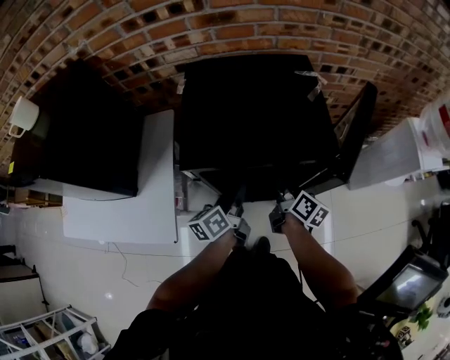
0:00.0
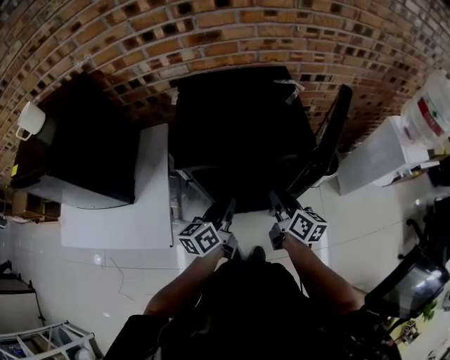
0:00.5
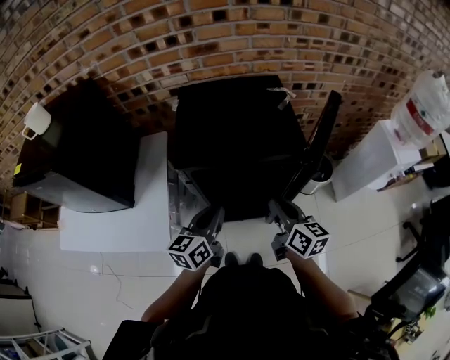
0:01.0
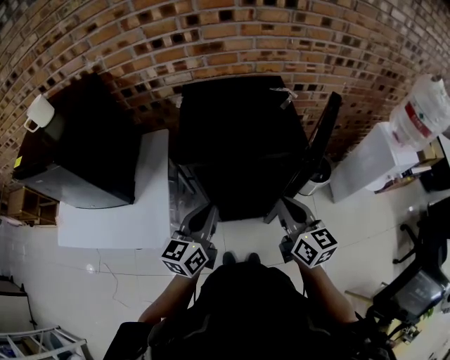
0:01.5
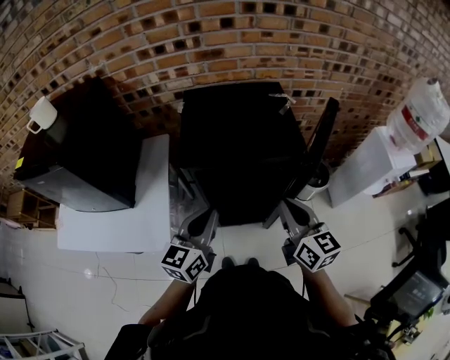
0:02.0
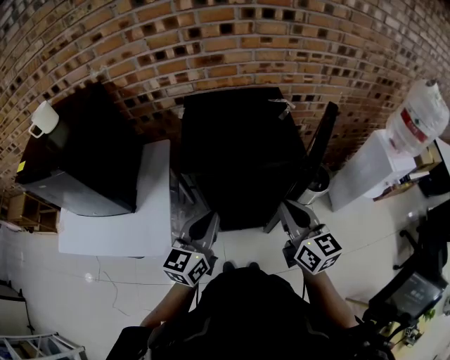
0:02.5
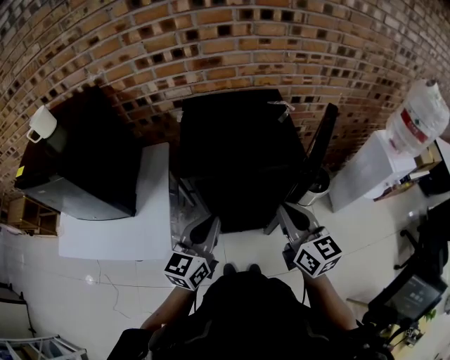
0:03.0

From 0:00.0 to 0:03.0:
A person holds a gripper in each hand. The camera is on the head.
From 0:00.0 to 0:01.5: Both grippers move upward and backward, about 20 cm. The right gripper rotates roughly 40 degrees, and closes; the left gripper rotates some 40 degrees.
From 0:01.5 to 0:03.0: There are only small adjustments of the grippers.

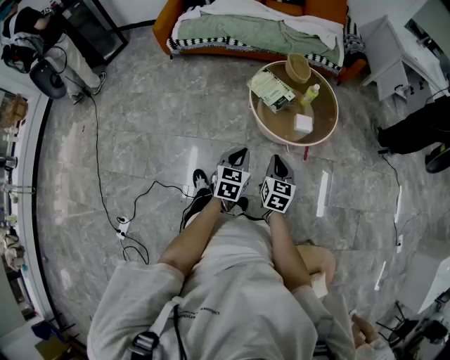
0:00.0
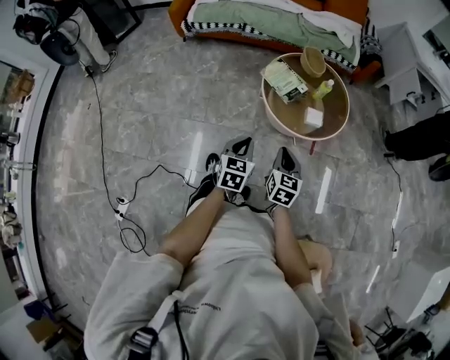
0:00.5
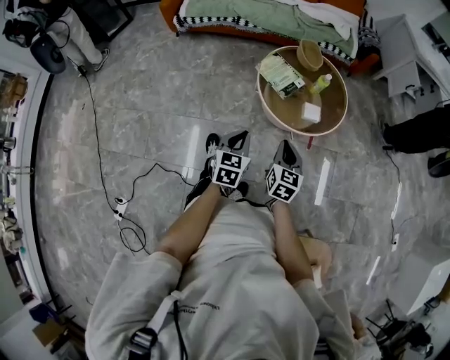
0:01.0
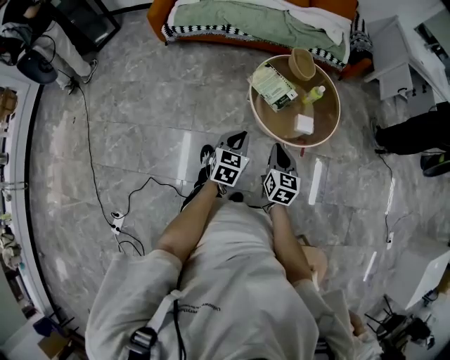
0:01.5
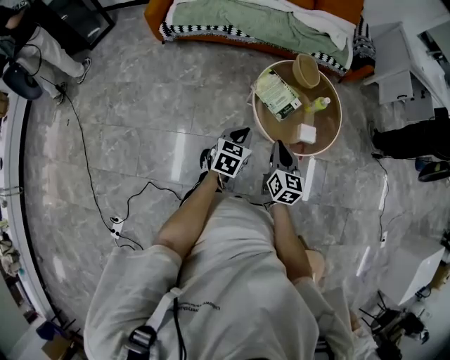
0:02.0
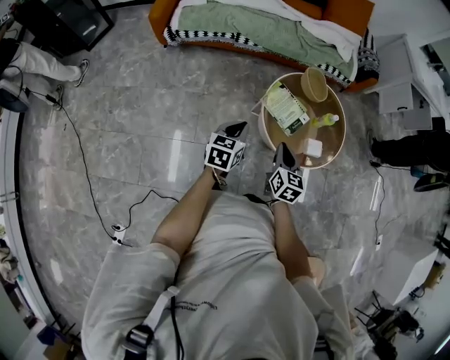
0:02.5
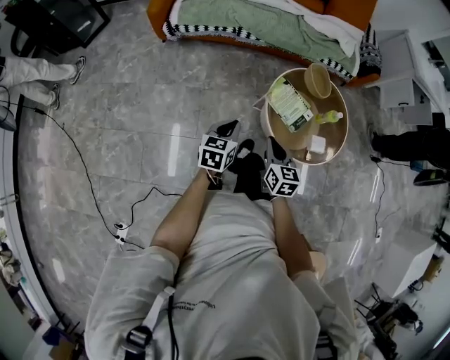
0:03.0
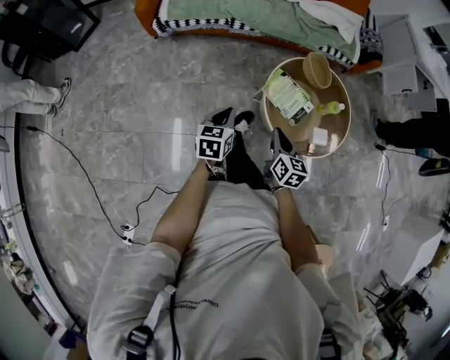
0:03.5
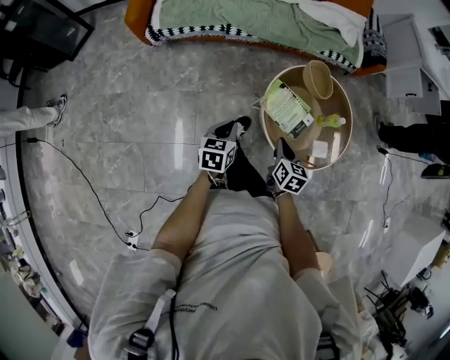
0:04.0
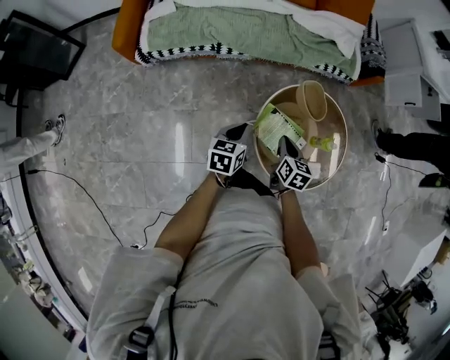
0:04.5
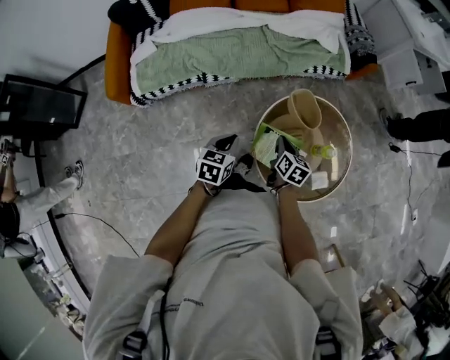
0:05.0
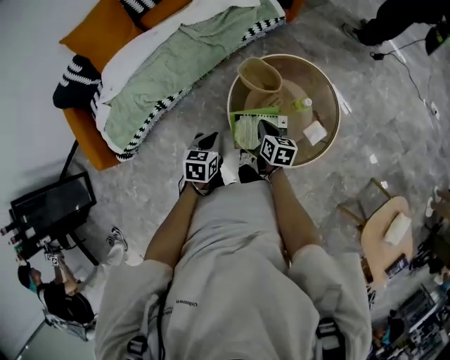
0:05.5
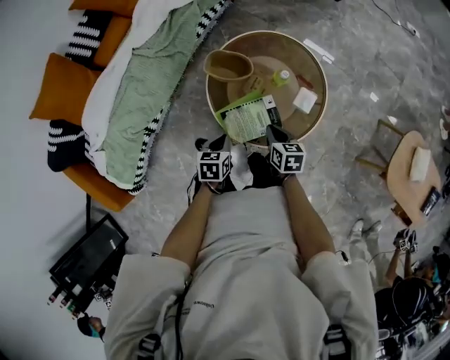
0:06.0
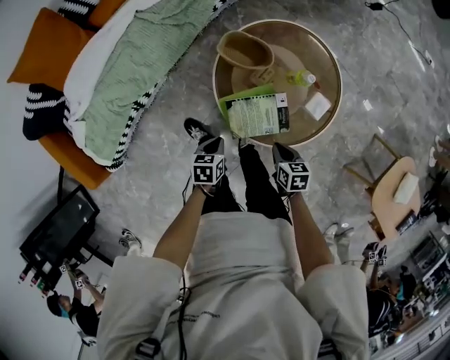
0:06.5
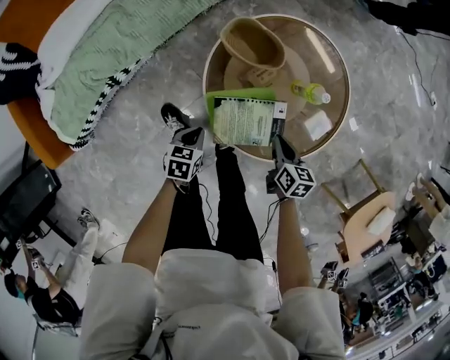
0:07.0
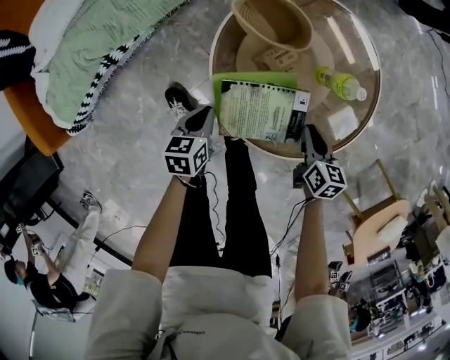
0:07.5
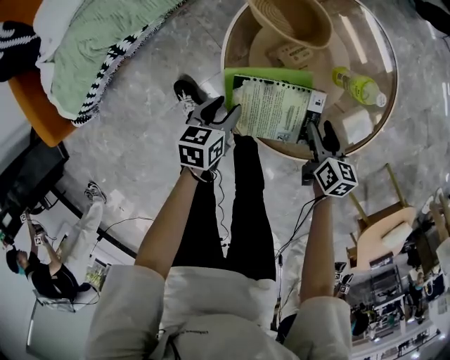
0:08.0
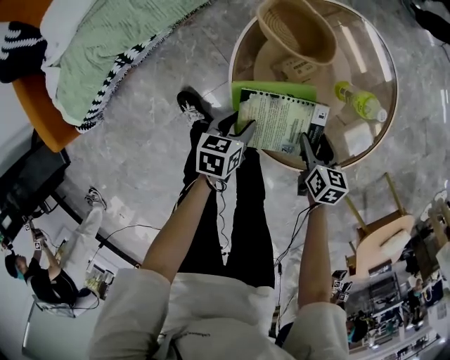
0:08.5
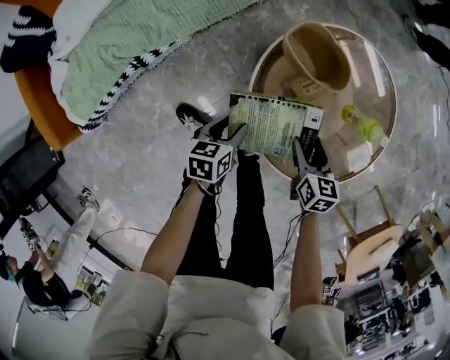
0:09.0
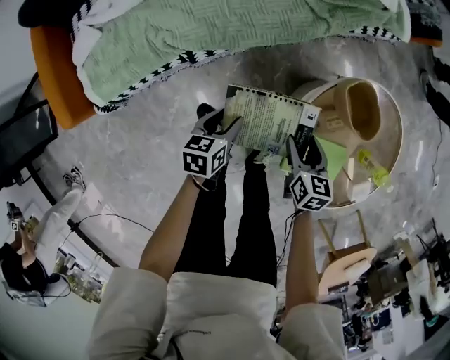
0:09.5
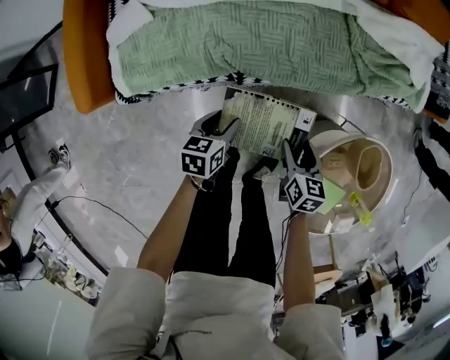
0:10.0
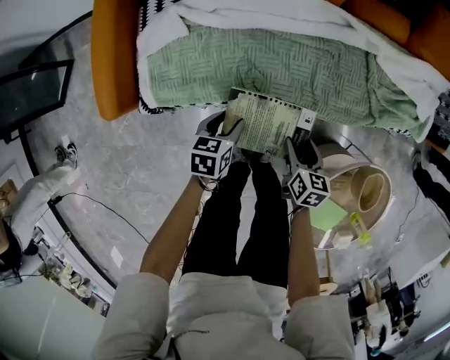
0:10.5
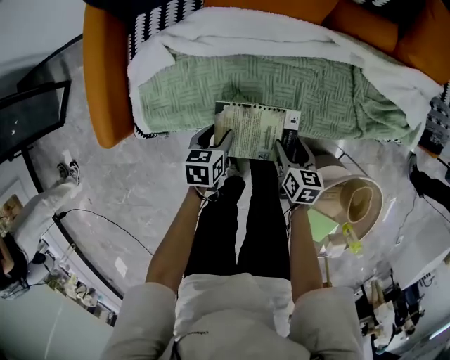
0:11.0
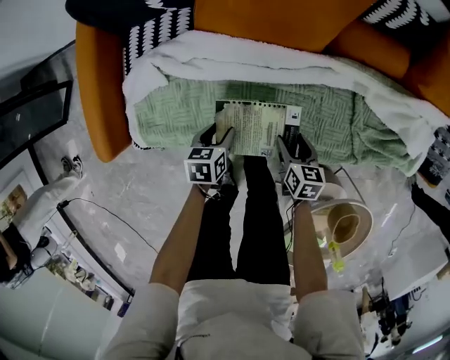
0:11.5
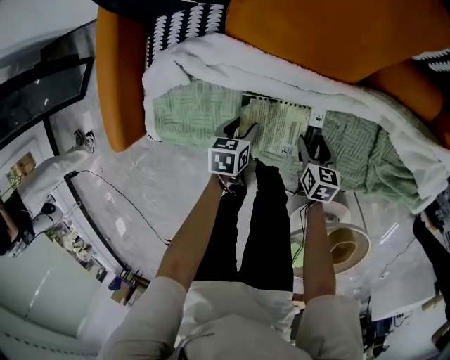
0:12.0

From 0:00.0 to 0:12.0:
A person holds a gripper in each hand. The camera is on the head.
From 0:00.0 to 0:02.0: The two grippers go roughly 20 cm forward and to the left.
From 0:02.0 to 0:04.0: The left gripper goes about 20 cm forward and to the left. The right gripper heads forward, downward and to the left, covering some 20 cm.
From 0:04.0 to 0:06.0: The left gripper ends up some 30 cm from where it was, and turns by approximately 60 degrees, while the right gripper moves some 20 cm, and changes its angle by roughly 50 degrees.
From 0:06.0 to 0:08.0: The grippers both shift downward by roughly 20 cm. The left gripper turns by approximately 20 degrees, and opens; the right gripper opens up.
From 0:08.0 to 0:10.0: The two grippers travel together, approximately 50 cm. The left gripper changes its angle by roughly 30 degrees. The right gripper swivels approximately 40 degrees.
From 0:10.0 to 0:12.0: The two grippers go some 30 cm forward. The left gripper swivels some 20 degrees.

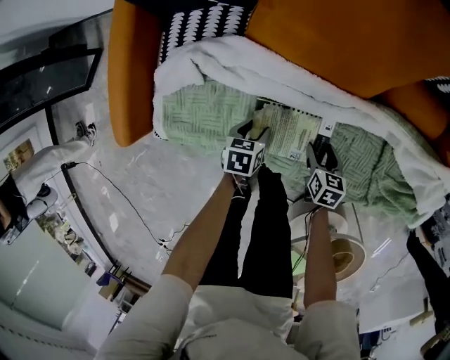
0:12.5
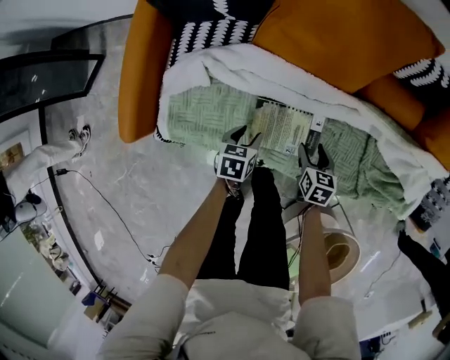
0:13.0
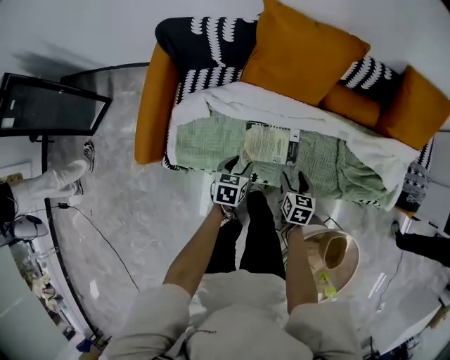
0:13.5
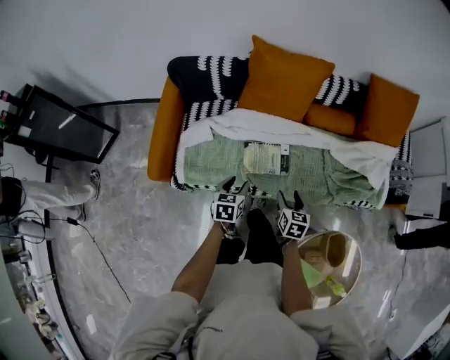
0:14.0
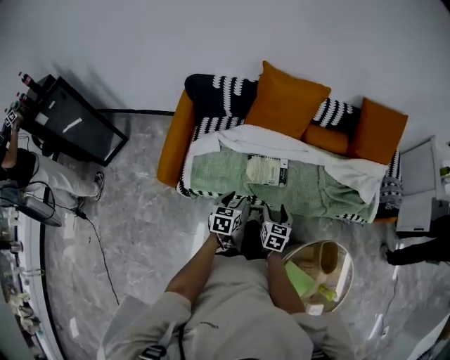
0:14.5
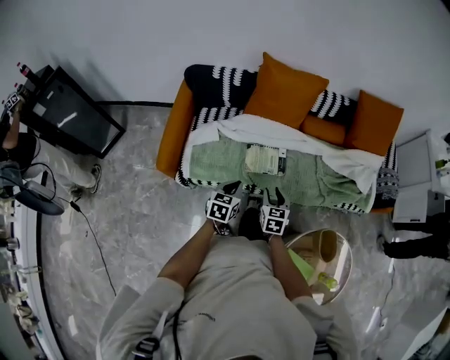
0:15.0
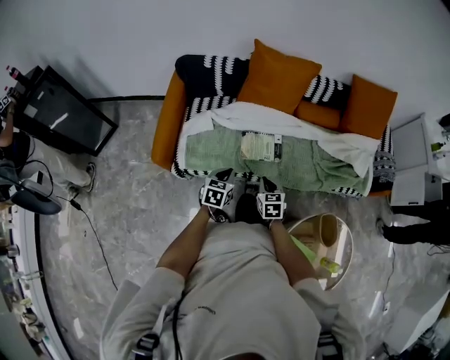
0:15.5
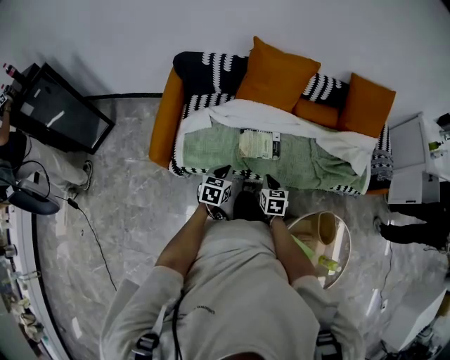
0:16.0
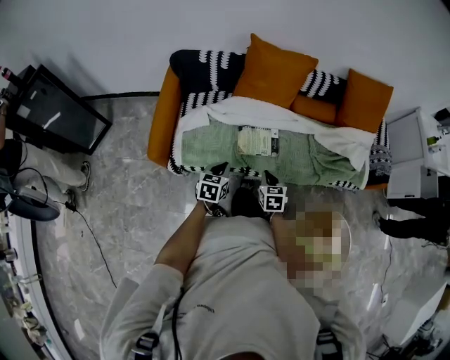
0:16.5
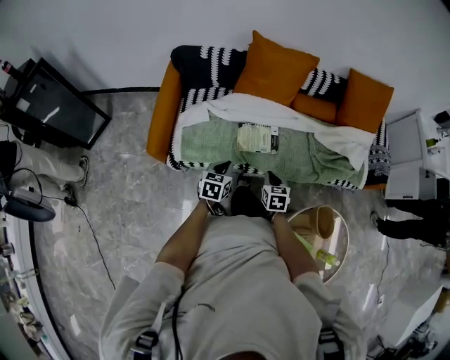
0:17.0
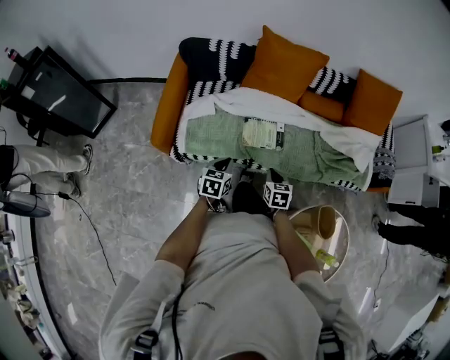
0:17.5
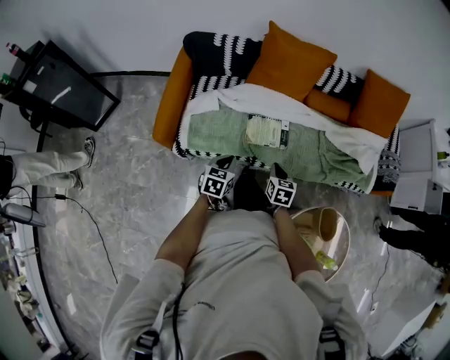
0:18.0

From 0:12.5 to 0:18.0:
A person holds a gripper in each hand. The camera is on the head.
From 0:12.5 to 0:14.5: The grippers both shift upward and backward by some 40 cm. The left gripper changes its angle by approximately 30 degrees. The right gripper changes its angle by roughly 30 degrees.
From 0:14.5 to 0:16.0: The left gripper closes up. Meanwhile the right gripper closes.
From 0:16.0 to 0:18.0: The grippers move only a little.

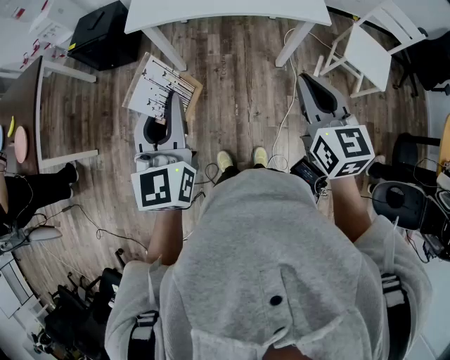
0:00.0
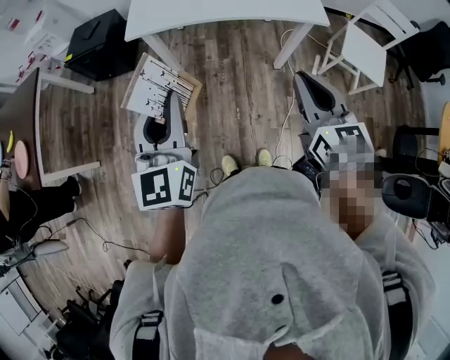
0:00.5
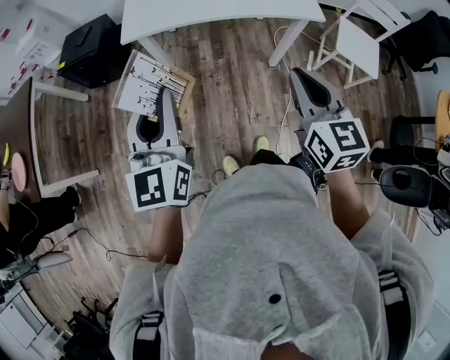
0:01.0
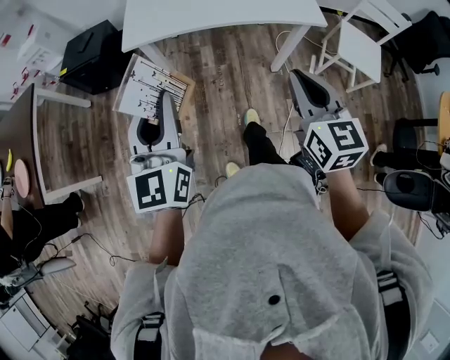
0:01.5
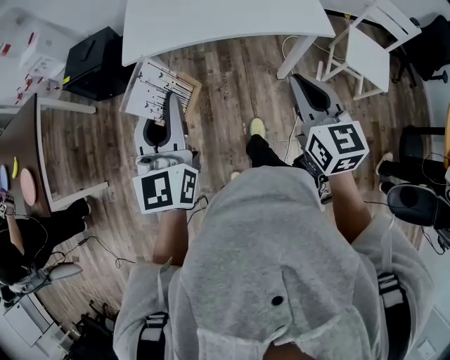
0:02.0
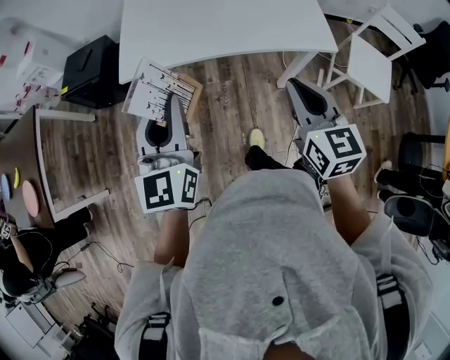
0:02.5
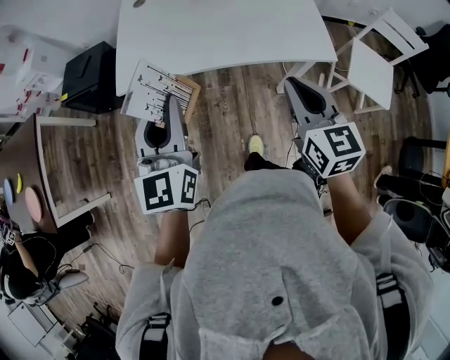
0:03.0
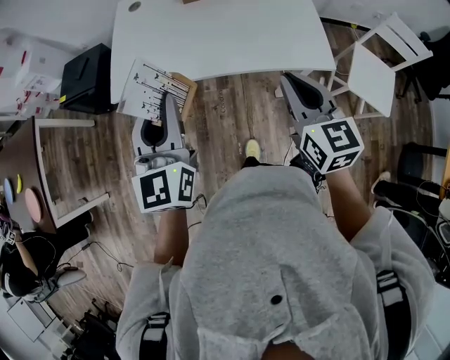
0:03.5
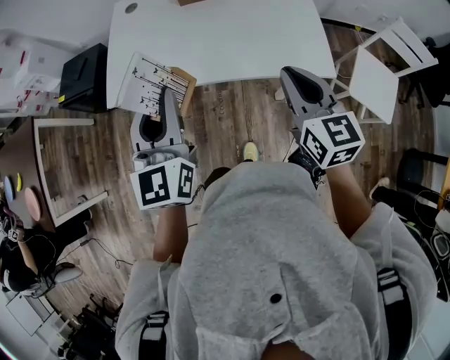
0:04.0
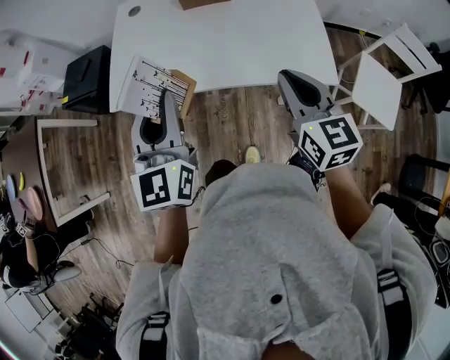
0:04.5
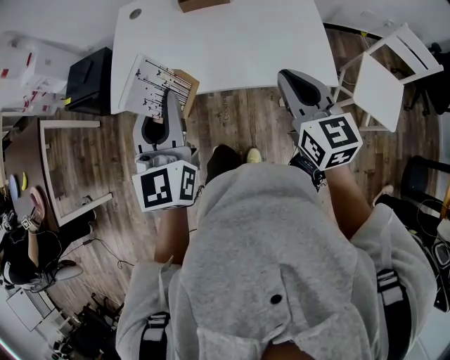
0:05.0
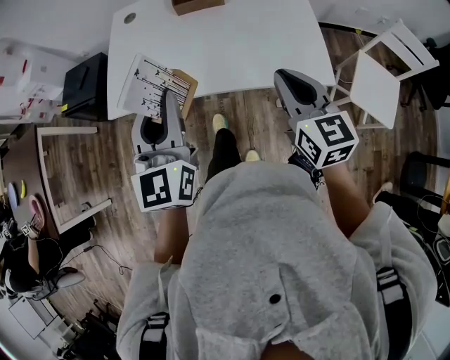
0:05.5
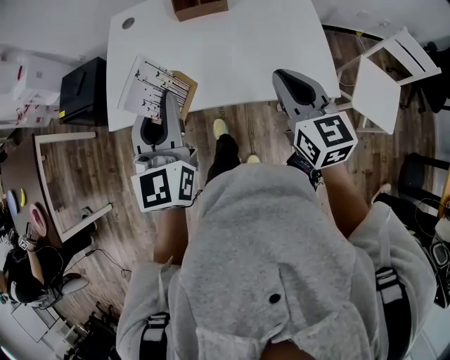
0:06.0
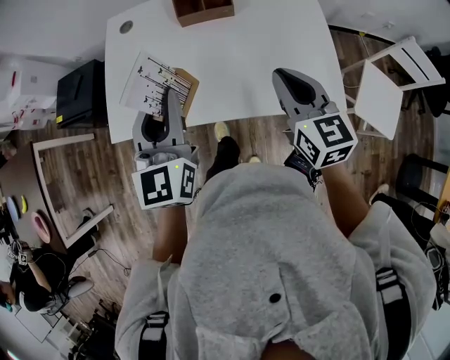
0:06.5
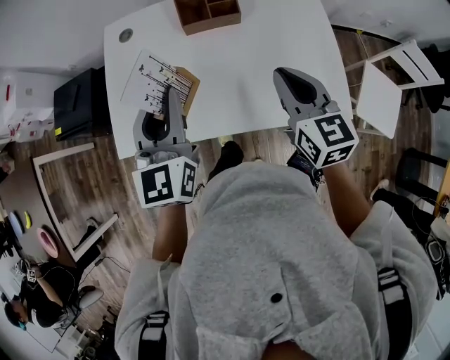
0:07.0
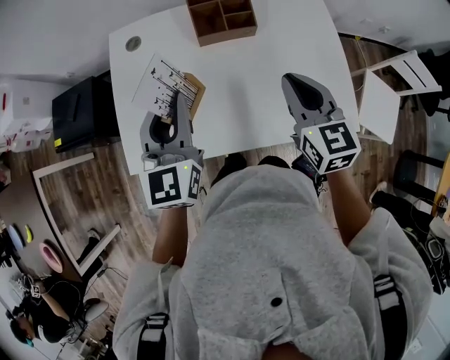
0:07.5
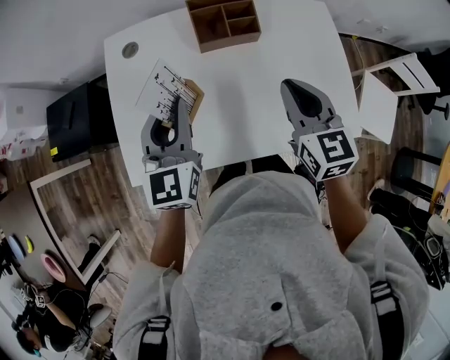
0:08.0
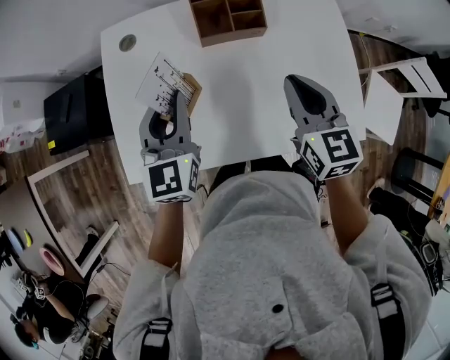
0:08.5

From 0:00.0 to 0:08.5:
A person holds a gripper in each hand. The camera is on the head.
From 0:00.0 to 0:02.0: The two grippers go about 10 cm forward.
From 0:02.0 to 0:04.0: The two grippers go some 25 cm forward and to the right.
From 0:04.0 to 0:06.5: The two grippers go approximately 15 cm forward.
From 0:06.5 to 0:08.5: The left gripper moves forward, downward and to the left, roughly 20 cm. Meanwhile the right gripper is displaced forward and to the left by roughly 15 cm.
